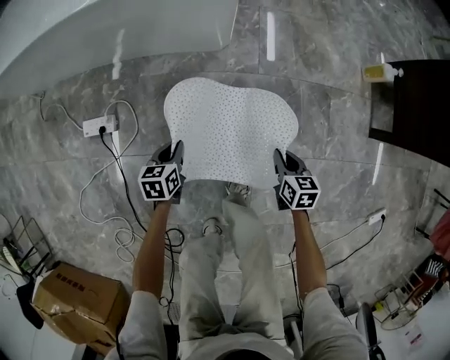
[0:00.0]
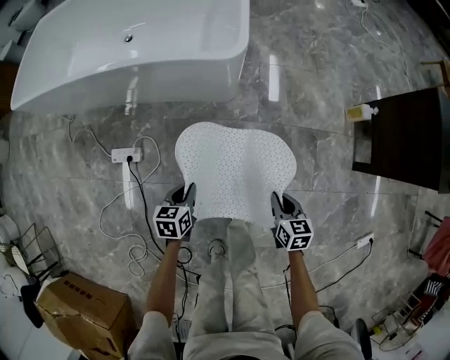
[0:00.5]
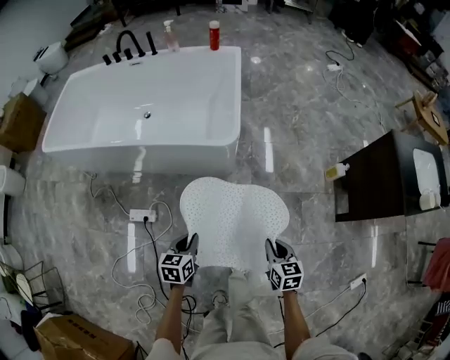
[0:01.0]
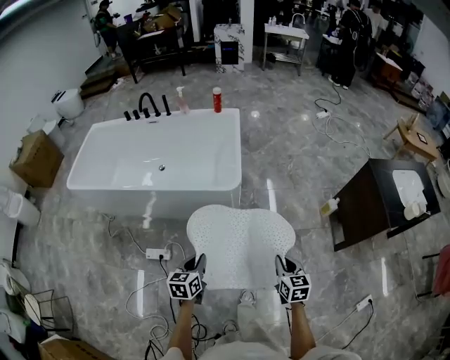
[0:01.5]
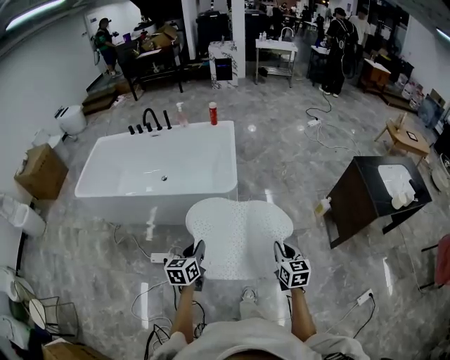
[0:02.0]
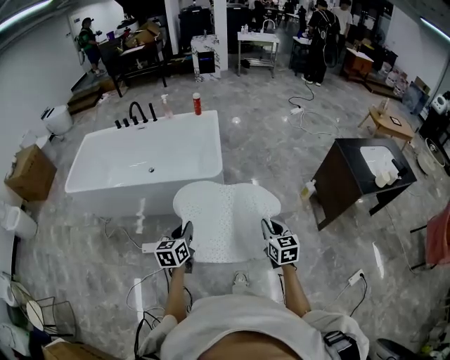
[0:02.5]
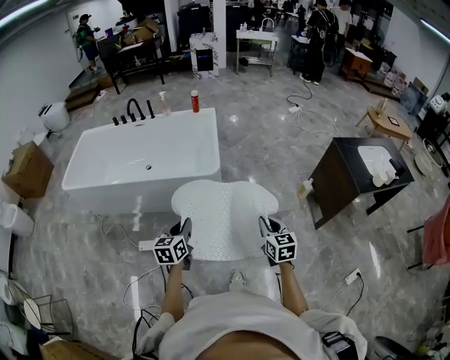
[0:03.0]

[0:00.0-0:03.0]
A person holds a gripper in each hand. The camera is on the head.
0:00.0 to 0:01.5: The grippers both shift upward by about 50 cm. The right gripper turns by about 20 degrees.
0:01.5 to 0:03.0: Both grippers travel together upward and backward, some 15 cm.

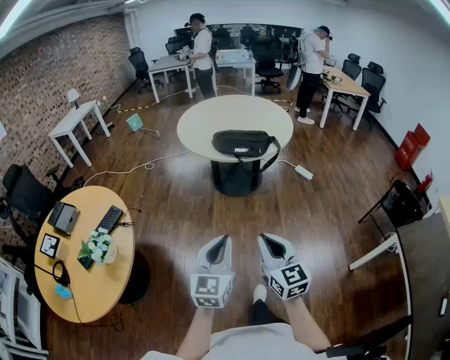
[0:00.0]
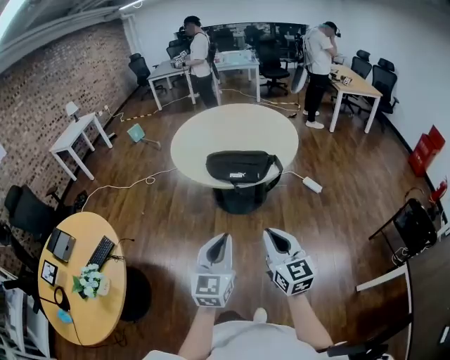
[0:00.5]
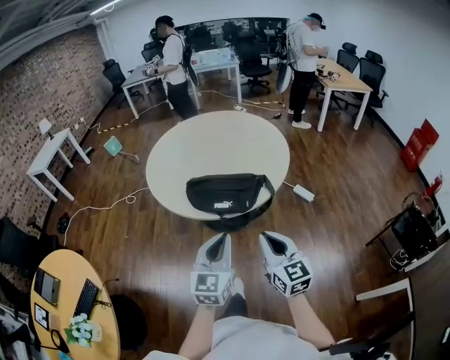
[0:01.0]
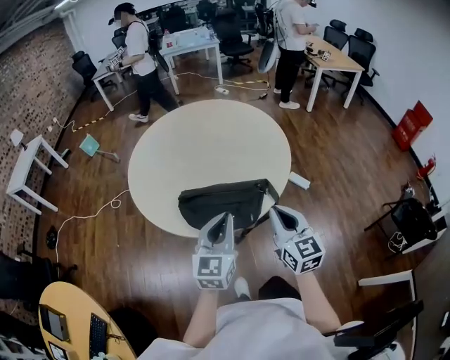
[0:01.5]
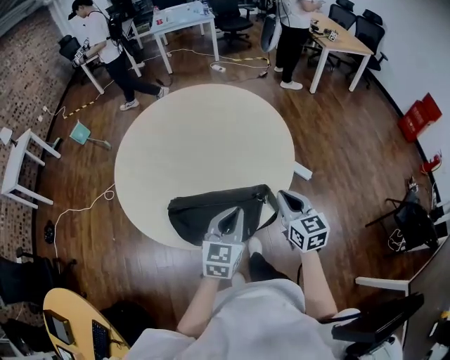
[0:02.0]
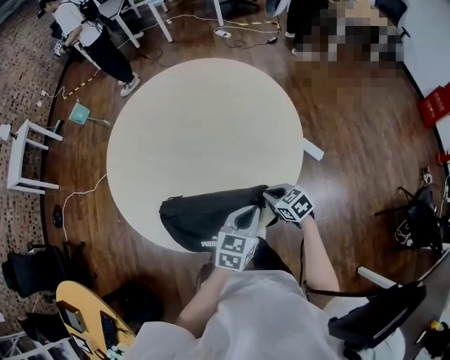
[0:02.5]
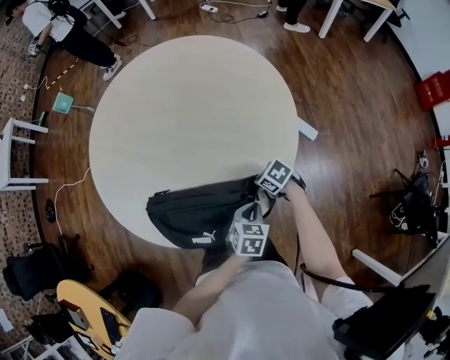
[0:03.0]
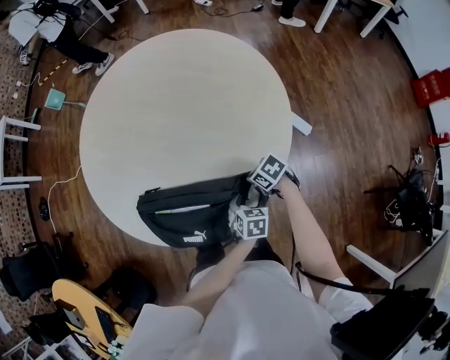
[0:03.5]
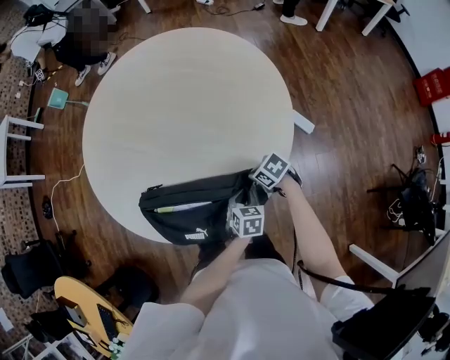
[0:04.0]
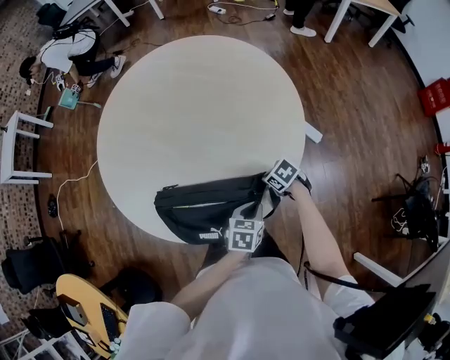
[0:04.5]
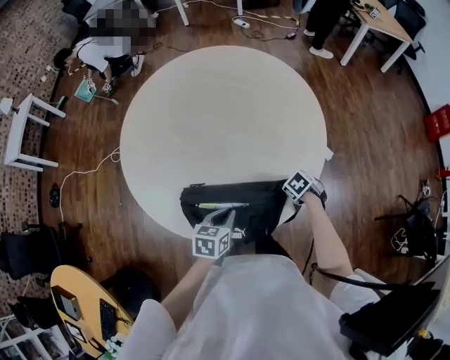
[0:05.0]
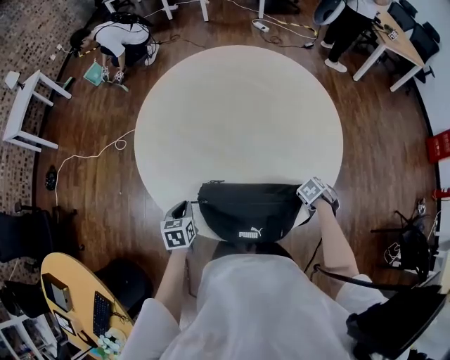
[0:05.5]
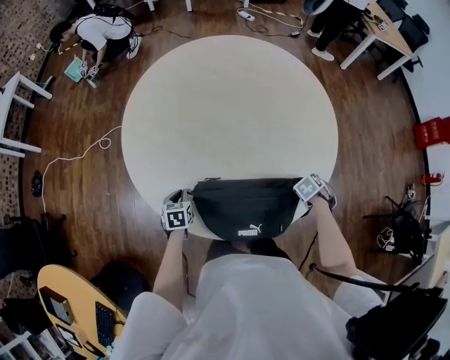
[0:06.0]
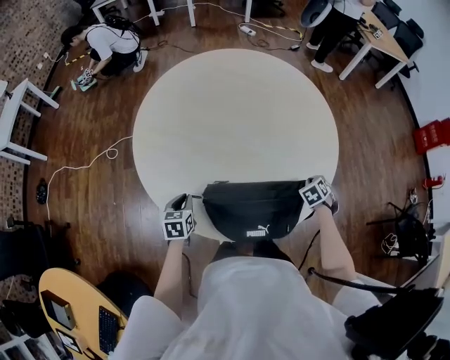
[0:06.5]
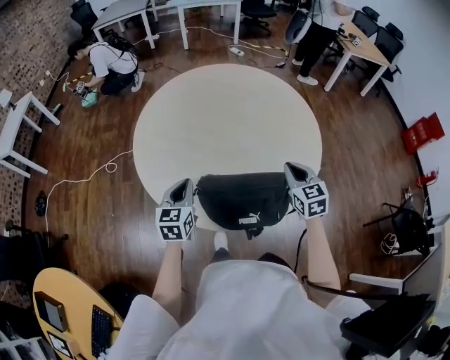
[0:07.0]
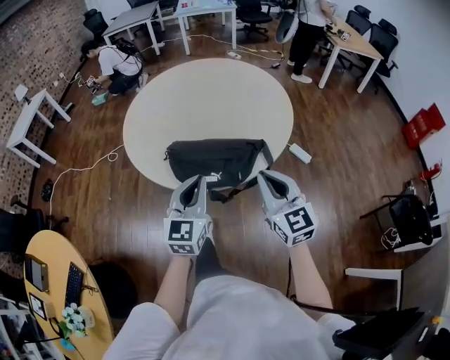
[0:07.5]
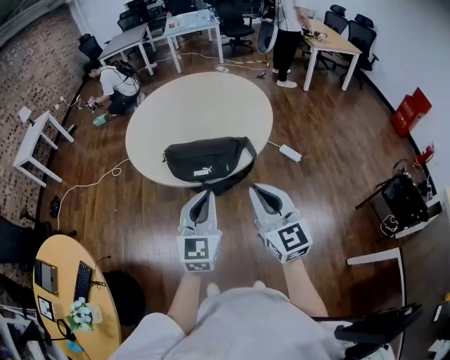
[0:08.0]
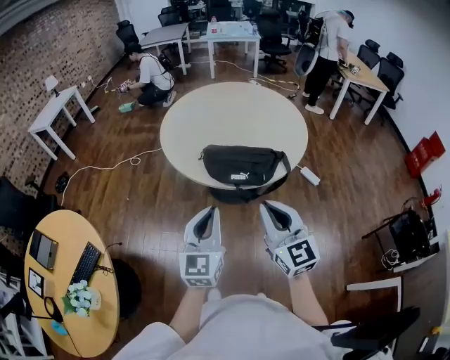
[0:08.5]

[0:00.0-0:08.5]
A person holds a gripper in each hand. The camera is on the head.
0:00.0 to 0:02.0: The pair of grippers is taken forward, roughly 80 cm. The left gripper swivels about 20 degrees; the right gripper changes its angle by approximately 20 degrees.
0:02.0 to 0:04.0: The two grippers go about 30 cm downward. The left gripper points its fingers roughly 40 degrees further downward, and opens and closes again. The right gripper tilts its fingers roughly 40 degrees downward.
0:04.0 to 0:06.5: The right gripper turns by some 50 degrees. The left gripper swings up and down, roughly 15 cm each way, with 2 reversals.
0:06.5 to 0:08.5: The right gripper moves roughly 70 cm, and angles its fingers upward, by approximately 70 degrees. The left gripper moves some 60 cm, and points its fingers some 40 degrees further upward.

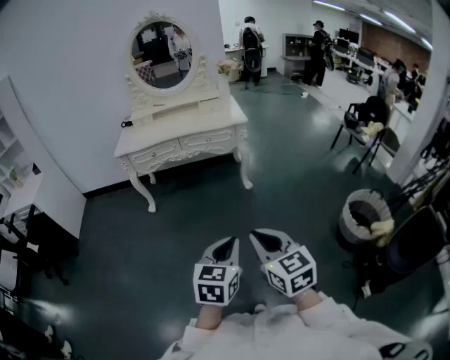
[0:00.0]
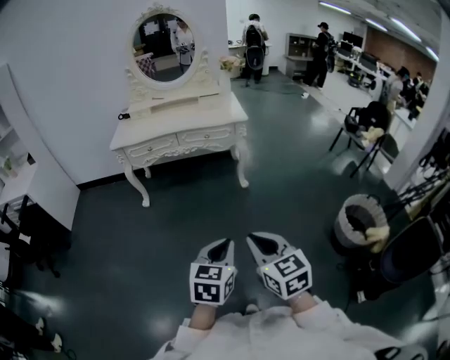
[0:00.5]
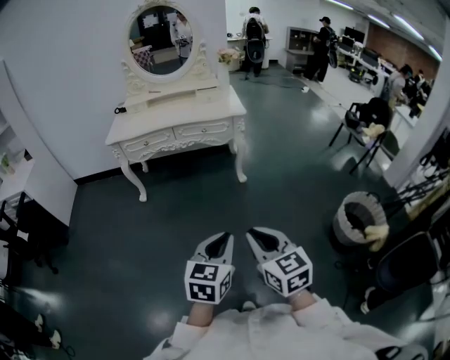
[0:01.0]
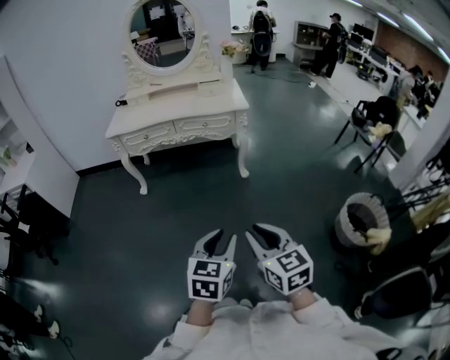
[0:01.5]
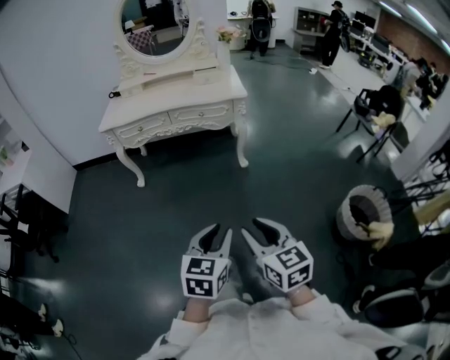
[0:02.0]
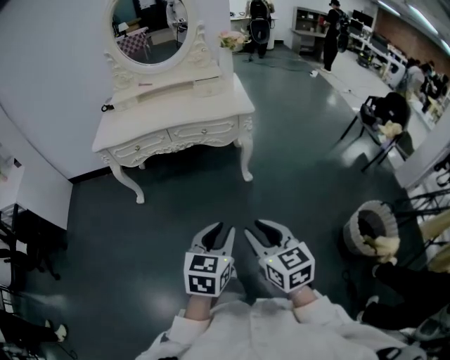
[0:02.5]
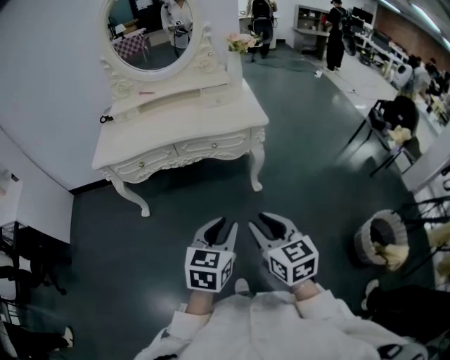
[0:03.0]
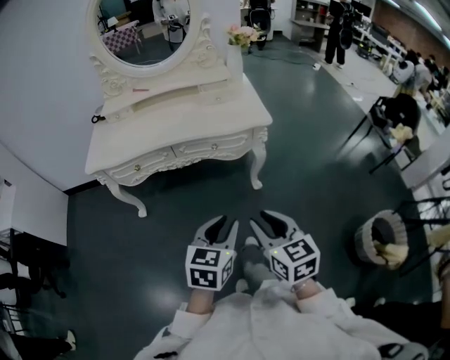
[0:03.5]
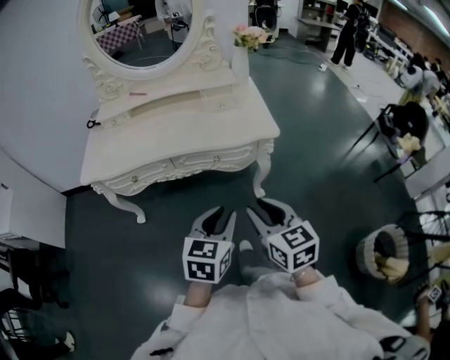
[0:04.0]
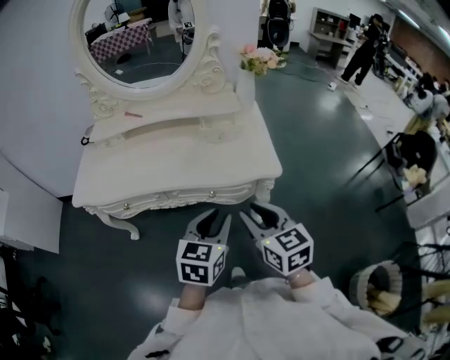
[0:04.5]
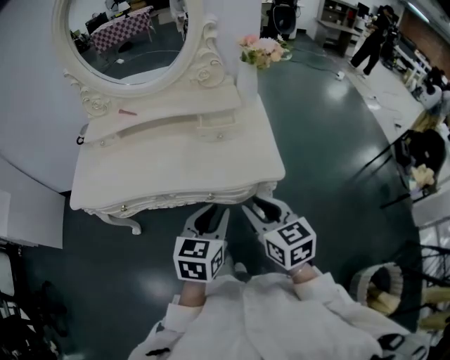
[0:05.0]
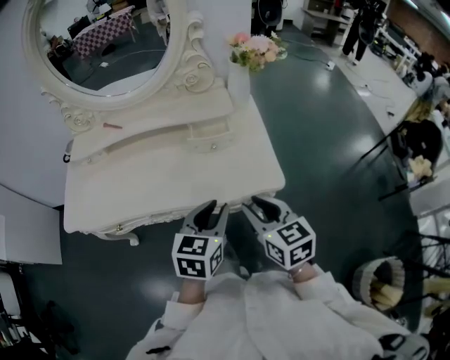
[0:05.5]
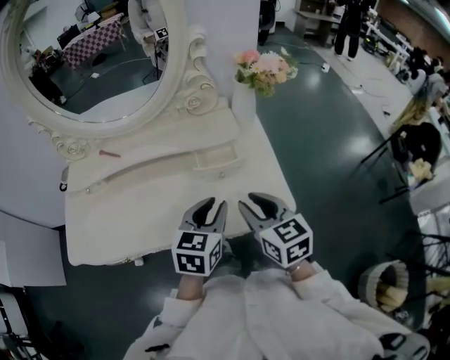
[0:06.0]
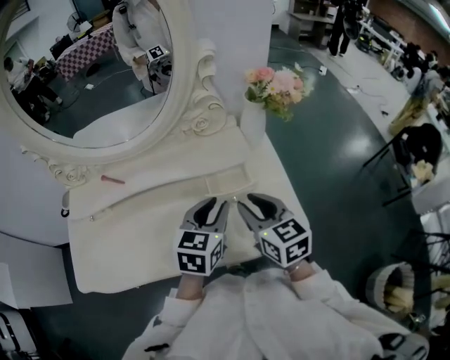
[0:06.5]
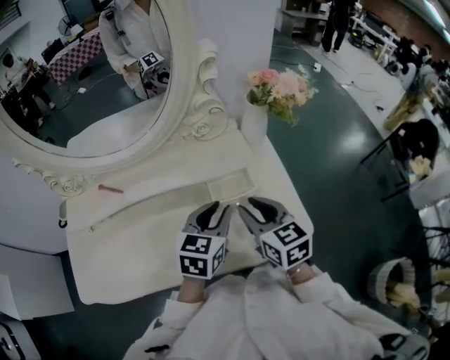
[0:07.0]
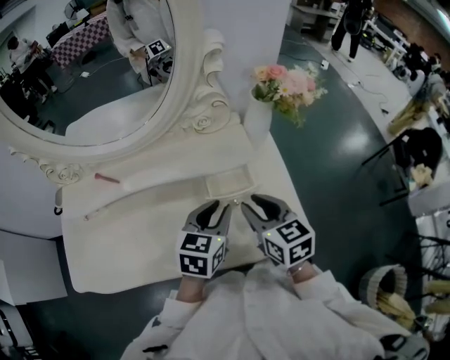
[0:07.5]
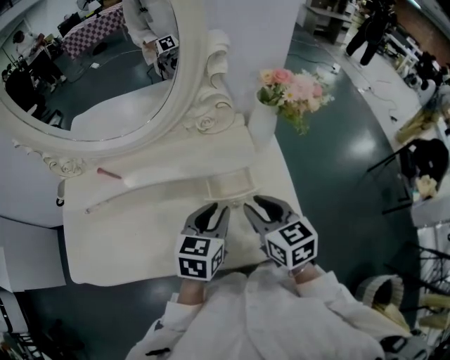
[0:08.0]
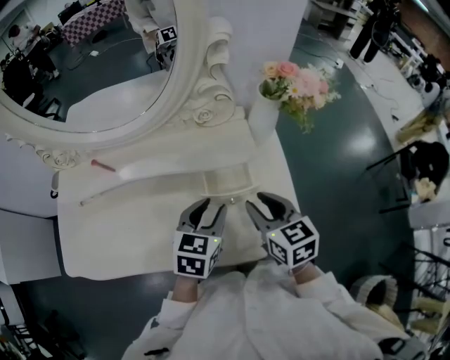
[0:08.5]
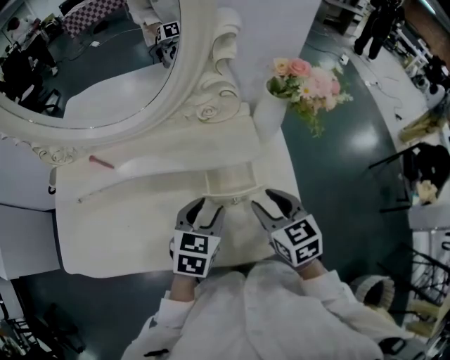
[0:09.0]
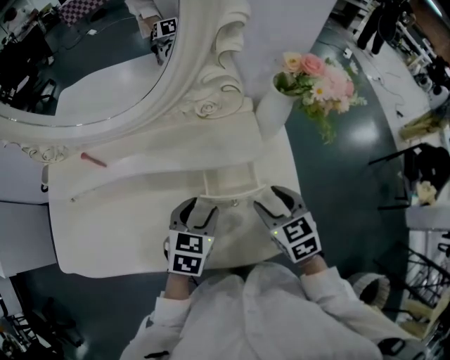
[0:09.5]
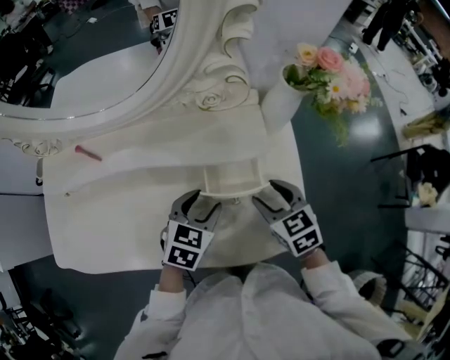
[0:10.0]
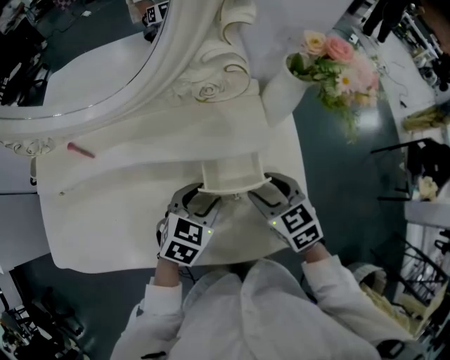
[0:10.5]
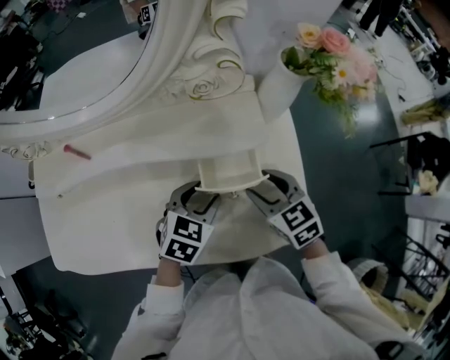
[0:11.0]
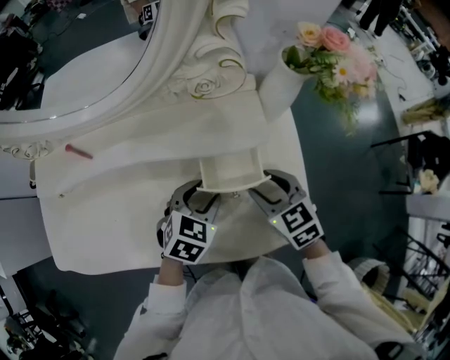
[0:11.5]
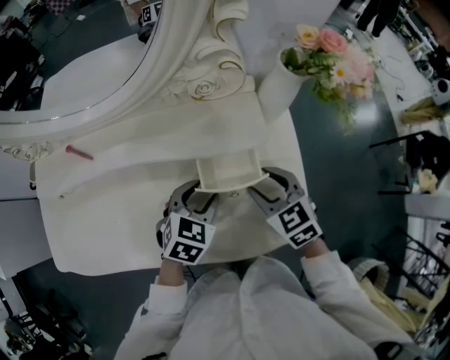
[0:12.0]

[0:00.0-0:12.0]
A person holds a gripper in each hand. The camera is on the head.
0:00.0 to 0:02.0: The left gripper heads forward, covering roughly 10 cm, and opens. Meanwhile the right gripper moves forward and downward, approximately 10 cm, and opens up.
0:02.0 to 0:04.0: The pair of grippers is taken forward, about 50 cm.
0:04.0 to 0:06.0: Both grippers move forward, roughly 40 cm.
0:06.0 to 0:08.0: Both grippers travel together forward, roughly 10 cm.
0:08.0 to 0:10.0: Both grippers move downward, roughly 10 cm. The right gripper changes its angle by roughly 20 degrees, and opens; the left gripper opens.
0:10.0 to 0:12.0: The grippers move only a little.

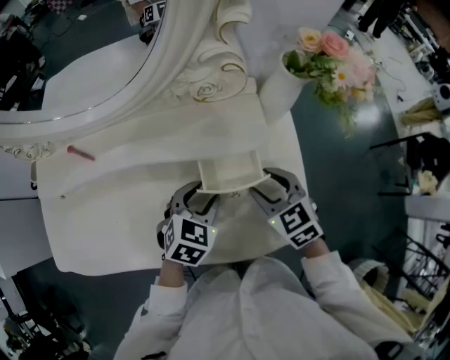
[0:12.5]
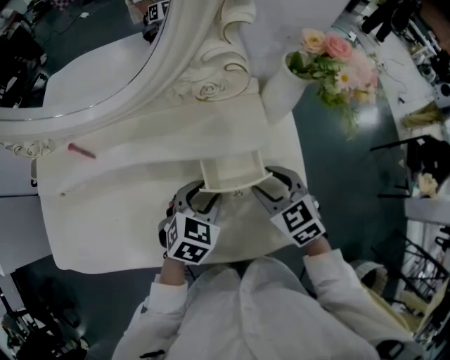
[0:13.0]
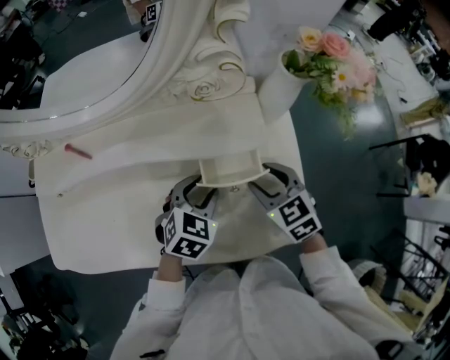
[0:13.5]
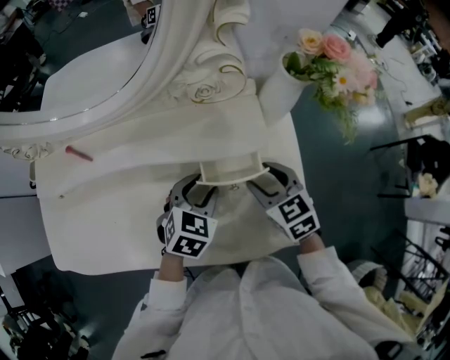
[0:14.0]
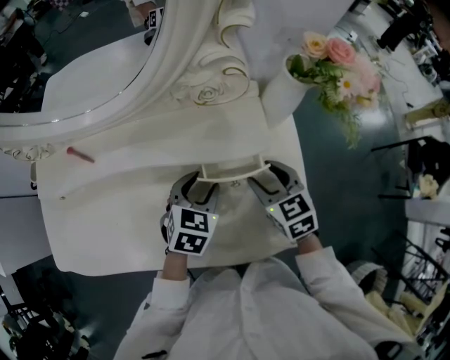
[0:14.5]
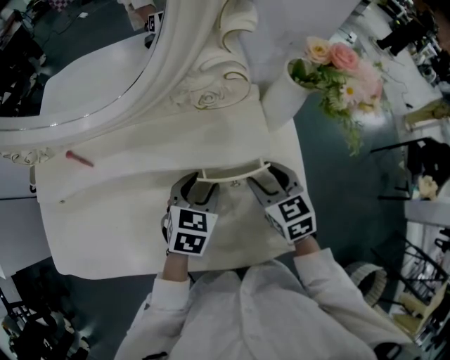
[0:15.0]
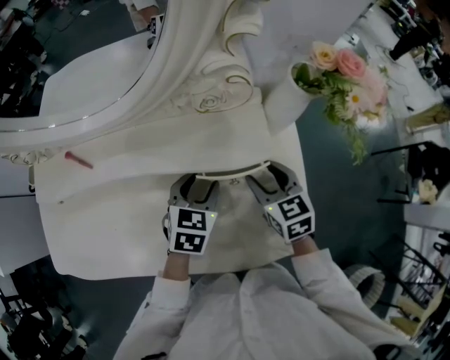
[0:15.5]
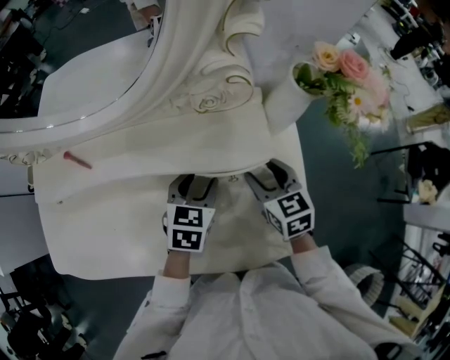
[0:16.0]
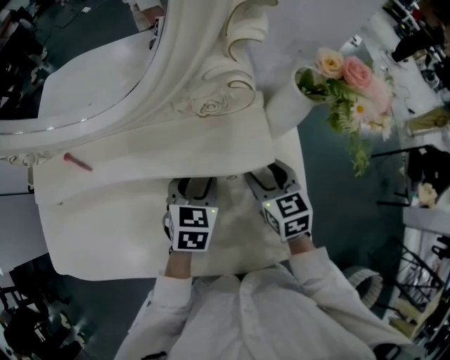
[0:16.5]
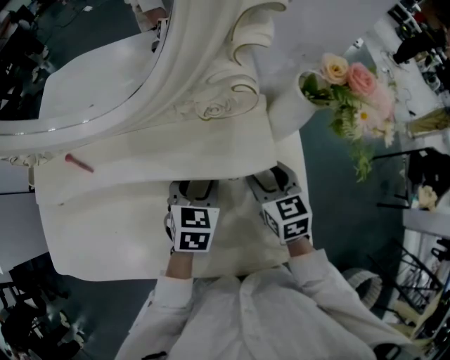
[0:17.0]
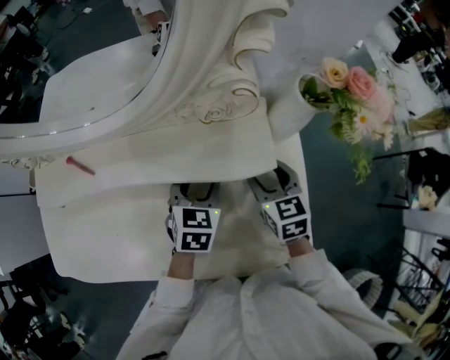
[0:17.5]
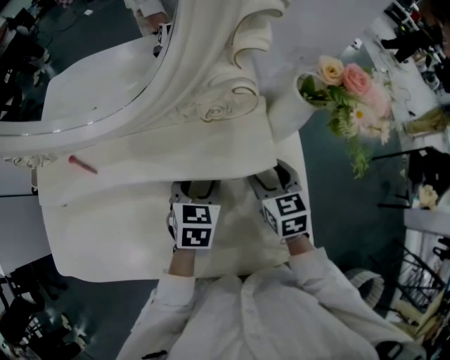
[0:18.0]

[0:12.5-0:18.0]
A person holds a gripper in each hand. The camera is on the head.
0:12.5 to 0:14.5: There are only small adjustments of the grippers.
0:14.5 to 0:18.0: There are only small adjustments of the grippers.
